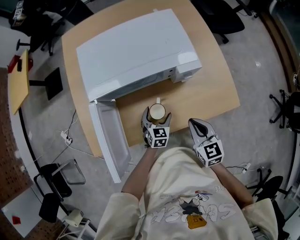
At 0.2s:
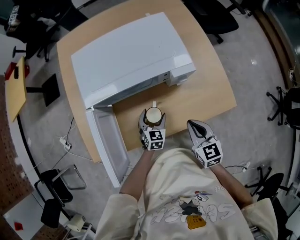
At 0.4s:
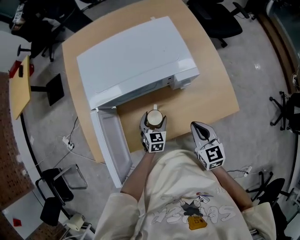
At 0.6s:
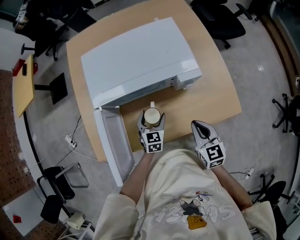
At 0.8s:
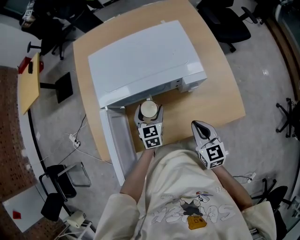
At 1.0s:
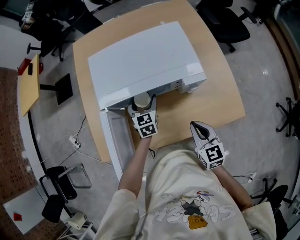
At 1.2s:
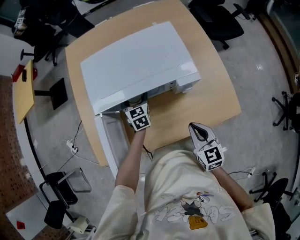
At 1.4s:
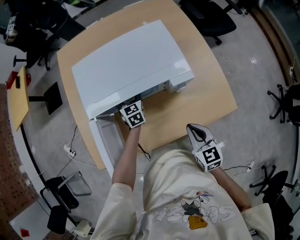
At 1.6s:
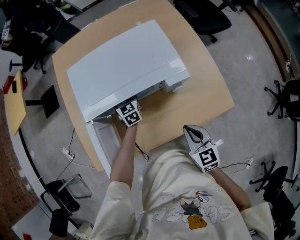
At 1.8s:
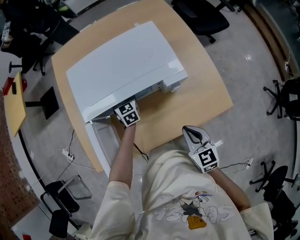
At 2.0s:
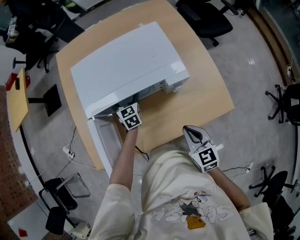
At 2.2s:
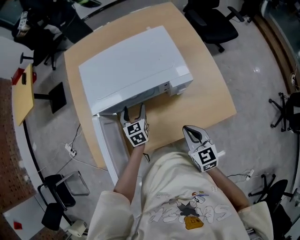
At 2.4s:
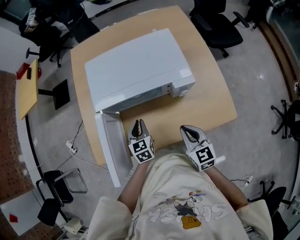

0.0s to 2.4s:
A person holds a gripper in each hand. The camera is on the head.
0.0s to 1.2s: The left gripper moves forward, upward and to the left, some 20 cm, and swivels about 20 degrees.
1.2s to 2.4s: The left gripper is displaced backward by about 15 cm, and closes.

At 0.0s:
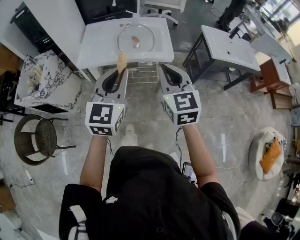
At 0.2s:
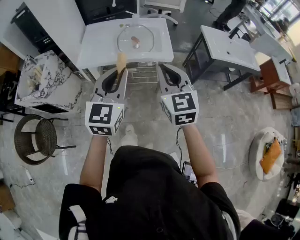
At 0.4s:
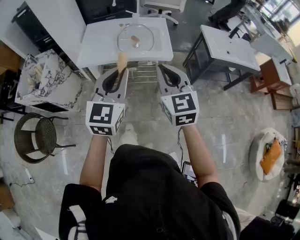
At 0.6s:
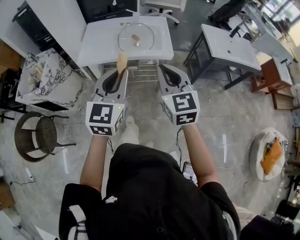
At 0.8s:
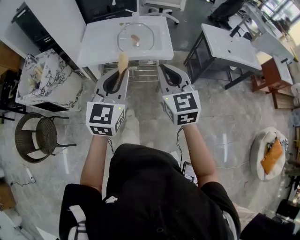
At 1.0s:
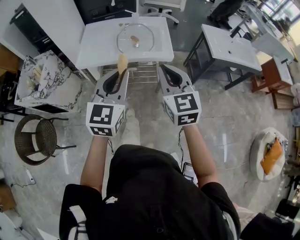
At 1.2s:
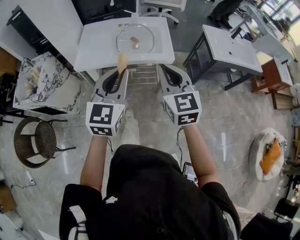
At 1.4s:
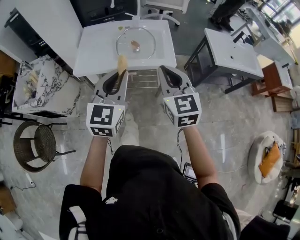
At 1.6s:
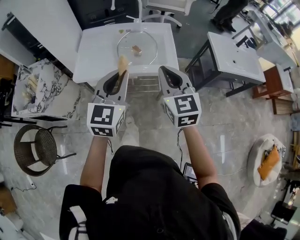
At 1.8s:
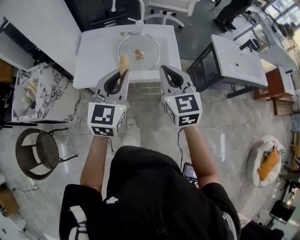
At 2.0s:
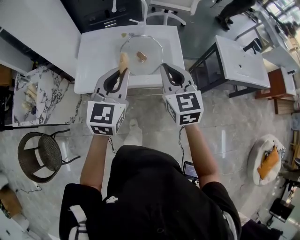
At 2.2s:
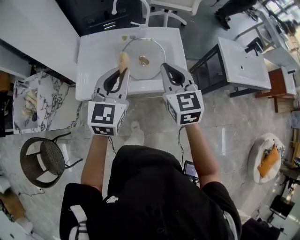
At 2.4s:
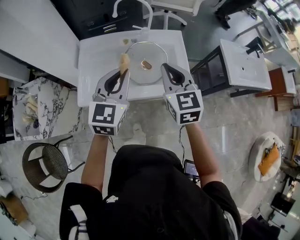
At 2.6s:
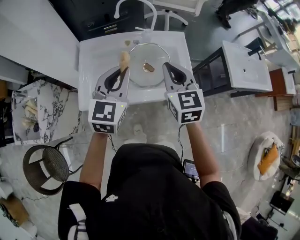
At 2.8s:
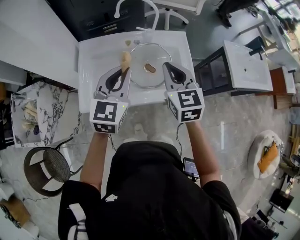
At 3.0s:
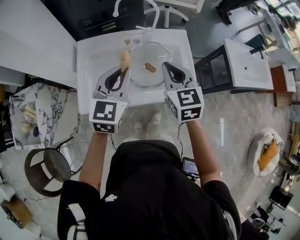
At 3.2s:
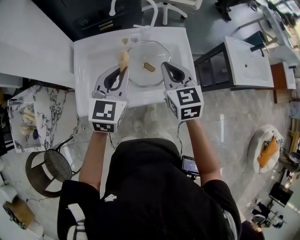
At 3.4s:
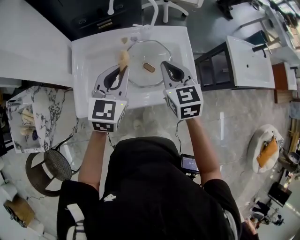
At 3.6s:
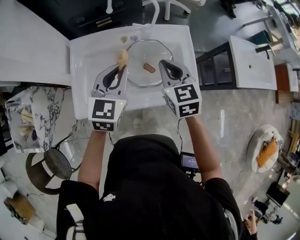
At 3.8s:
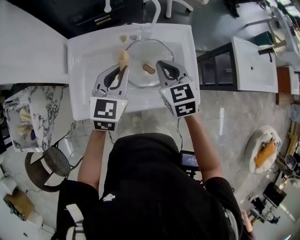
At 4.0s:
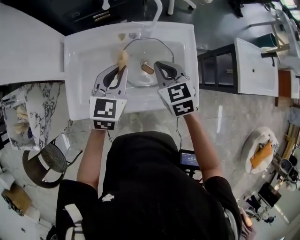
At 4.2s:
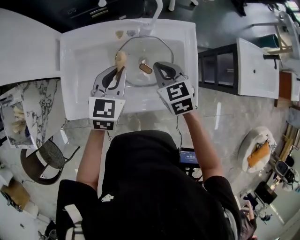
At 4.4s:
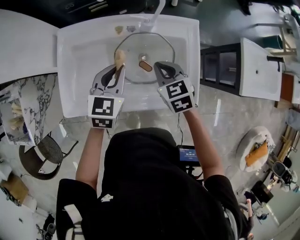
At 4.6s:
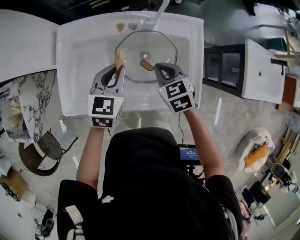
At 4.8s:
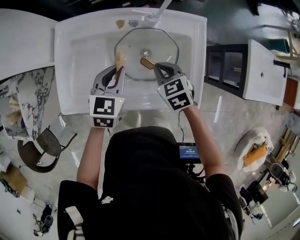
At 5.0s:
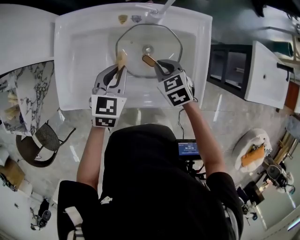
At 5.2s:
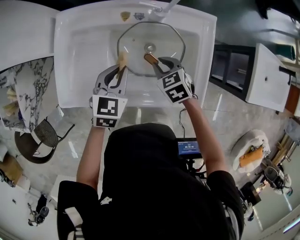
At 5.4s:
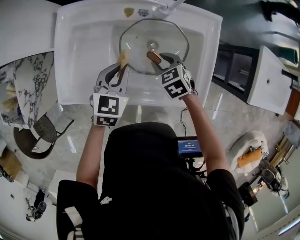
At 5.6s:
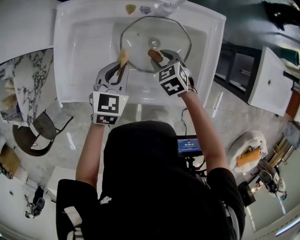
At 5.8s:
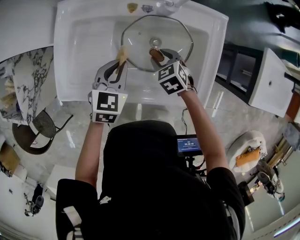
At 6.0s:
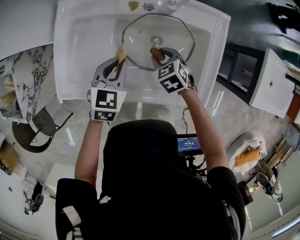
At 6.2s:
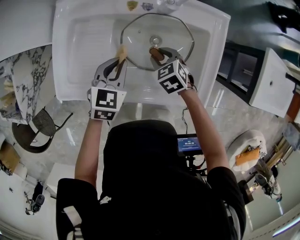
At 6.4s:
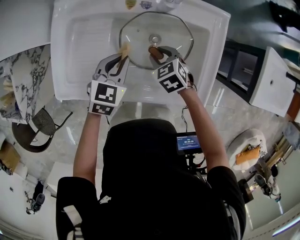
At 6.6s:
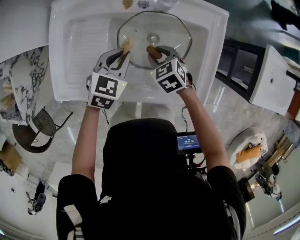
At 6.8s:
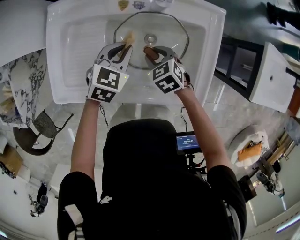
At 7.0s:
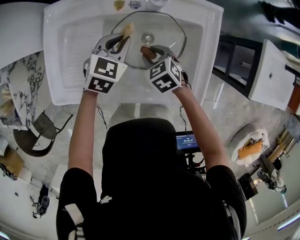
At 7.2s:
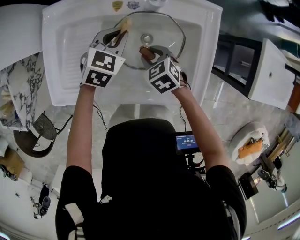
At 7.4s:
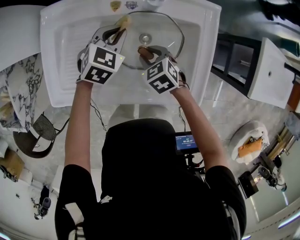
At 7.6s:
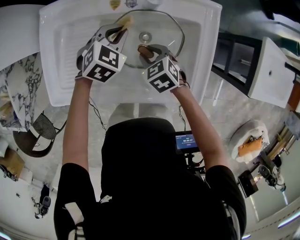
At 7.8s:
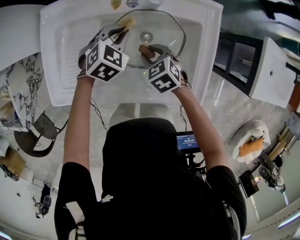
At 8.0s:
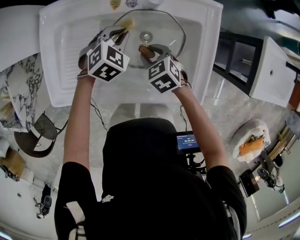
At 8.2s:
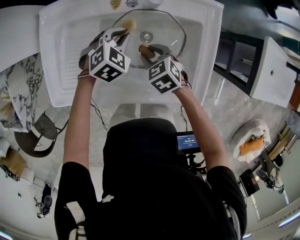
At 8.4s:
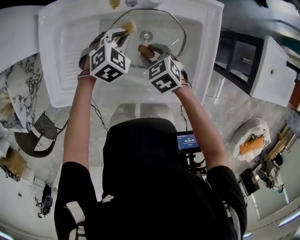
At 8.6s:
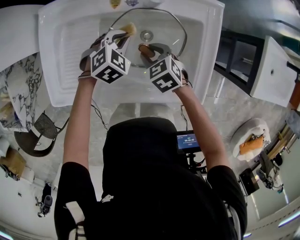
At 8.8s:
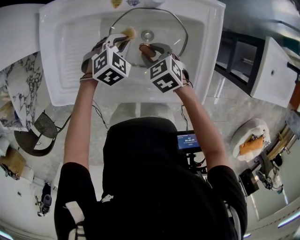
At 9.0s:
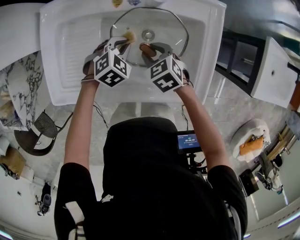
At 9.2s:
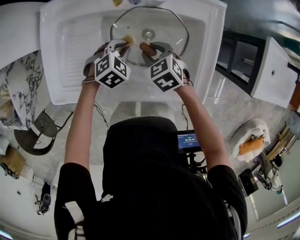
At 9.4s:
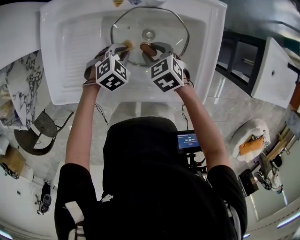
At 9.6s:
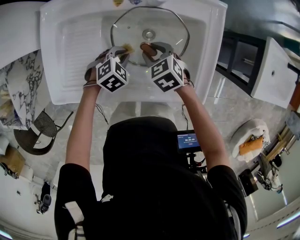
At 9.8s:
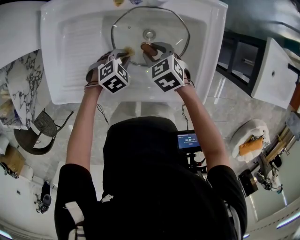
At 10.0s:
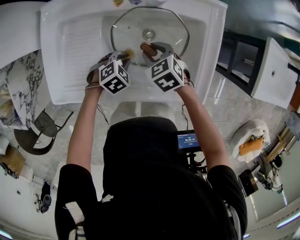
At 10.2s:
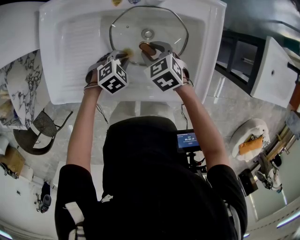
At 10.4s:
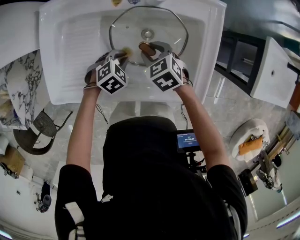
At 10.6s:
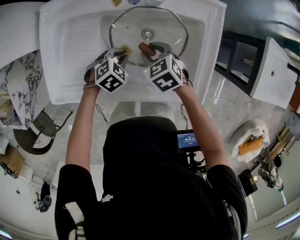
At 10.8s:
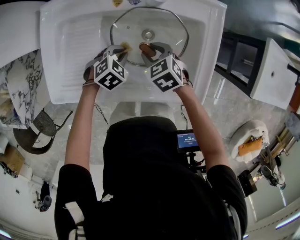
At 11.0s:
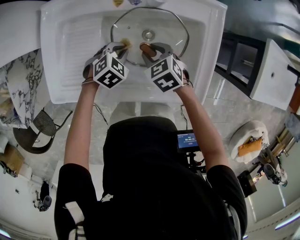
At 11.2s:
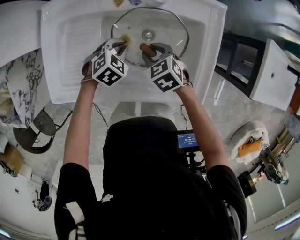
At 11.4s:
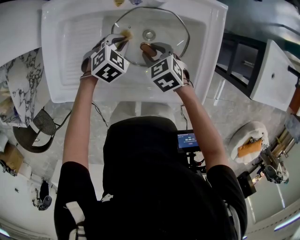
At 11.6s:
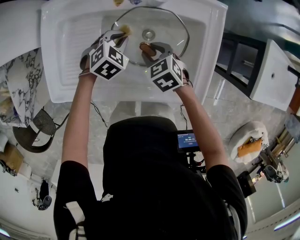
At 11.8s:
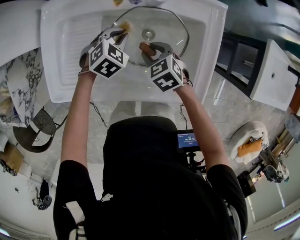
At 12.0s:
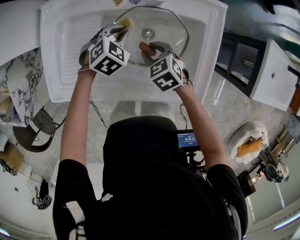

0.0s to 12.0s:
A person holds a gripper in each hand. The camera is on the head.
0.0s to 1.6s: Both grippers travel together forward, roughly 15 cm.
1.6s to 3.0s: The grippers both shift forward by about 25 cm.
3.0s to 4.4s: The grippers both shift downward and forward by about 20 cm. The right gripper changes its angle by some 30 degrees.
4.4s to 6.0s: Both grippers travel together downward, roughly 15 cm. The right gripper rotates about 20 degrees, and opens its fingers.
6.0s to 7.6s: The left gripper moves forward and to the right, some 10 cm, and rotates about 30 degrees.
7.6s to 9.0s: The left gripper moves downward and backward, roughly 10 cm.
9.0s to 10.4s: The left gripper shifts approximately 5 cm backward.
10.4s to 12.0s: The left gripper is displaced forward and upward by some 15 cm.

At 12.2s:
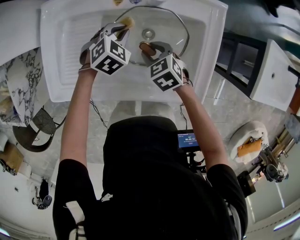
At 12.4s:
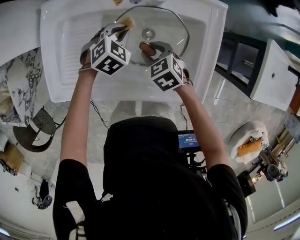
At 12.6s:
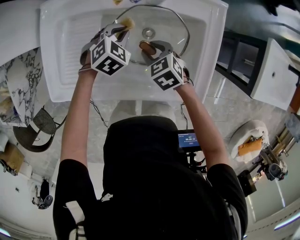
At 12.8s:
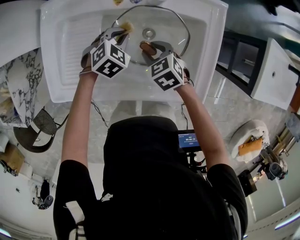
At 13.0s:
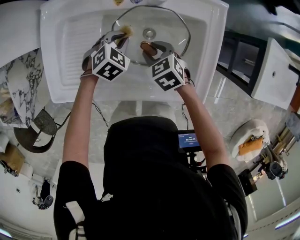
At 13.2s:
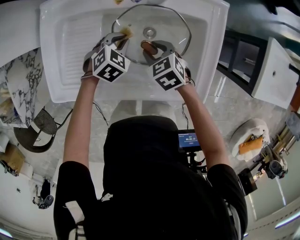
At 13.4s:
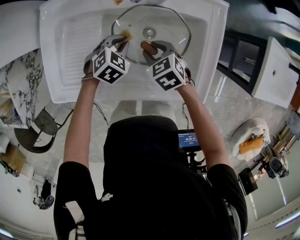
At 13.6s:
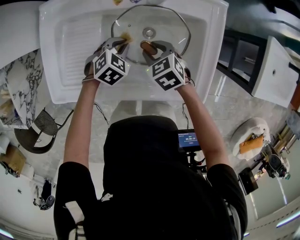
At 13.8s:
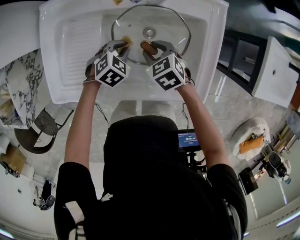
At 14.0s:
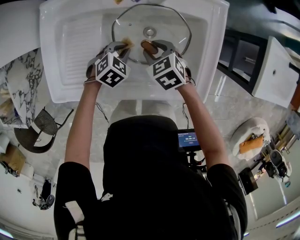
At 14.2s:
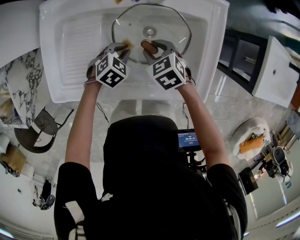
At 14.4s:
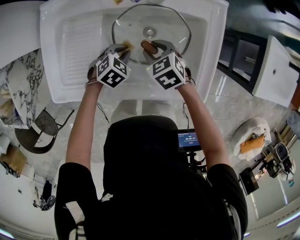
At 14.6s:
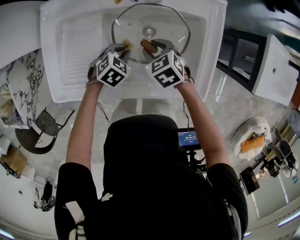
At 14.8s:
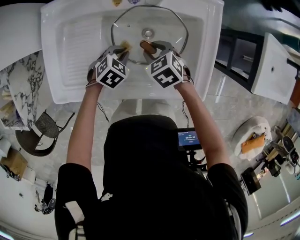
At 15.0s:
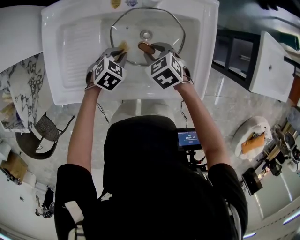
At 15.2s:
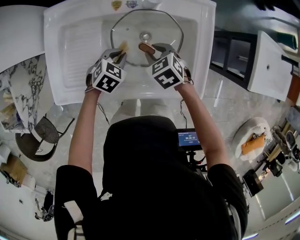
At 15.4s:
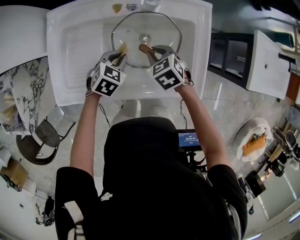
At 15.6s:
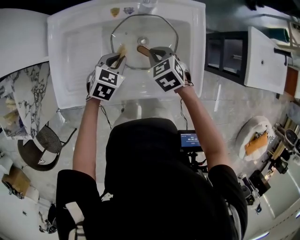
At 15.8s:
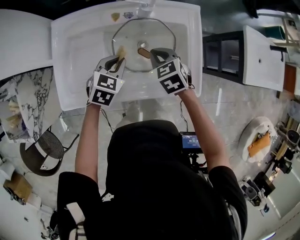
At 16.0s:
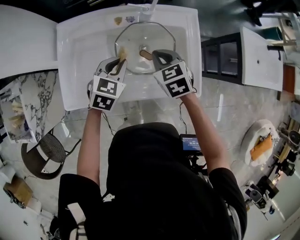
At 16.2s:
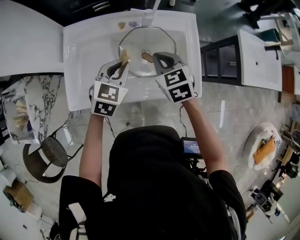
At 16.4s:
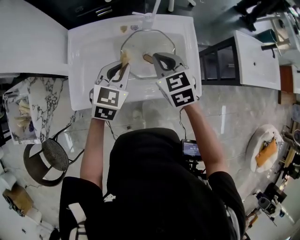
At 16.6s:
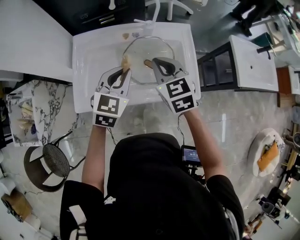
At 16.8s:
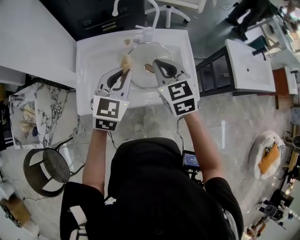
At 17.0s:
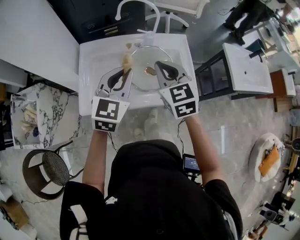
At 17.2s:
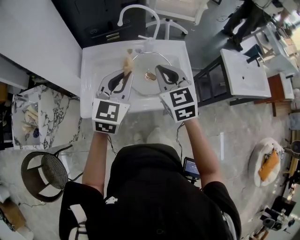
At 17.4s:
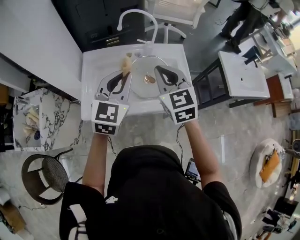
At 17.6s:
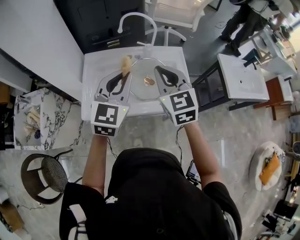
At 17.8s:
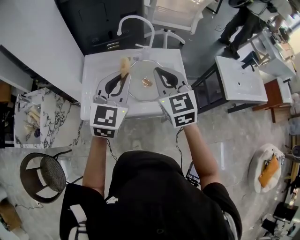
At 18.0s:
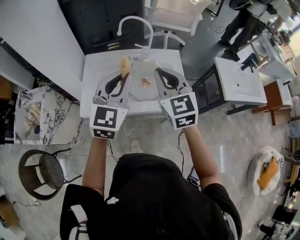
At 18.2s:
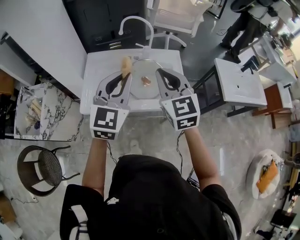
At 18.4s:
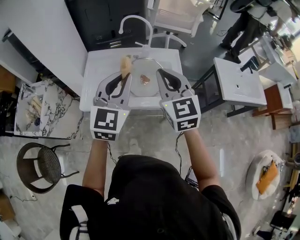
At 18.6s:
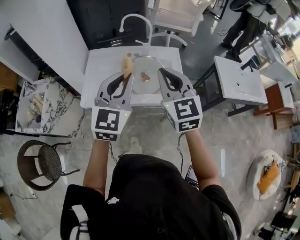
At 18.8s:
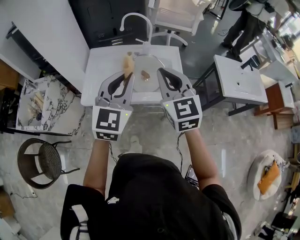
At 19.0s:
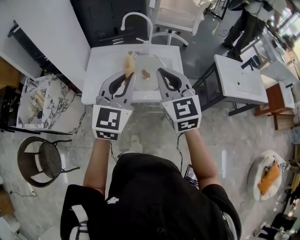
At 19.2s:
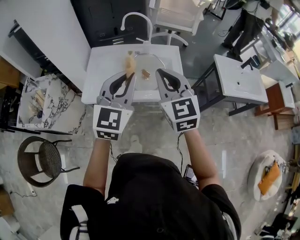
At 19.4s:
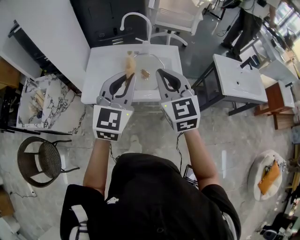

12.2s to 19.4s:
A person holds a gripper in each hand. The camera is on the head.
12.2s to 13.6s: The left gripper travels backward by some 5 cm.
13.6s to 15.0s: There are only small adjustments of the grippers.
15.0s to 16.6s: Both grippers travel together upward, approximately 30 cm. The left gripper tips its fingers upward by about 40 degrees; the right gripper tilts its fingers some 30 degrees upward, and closes up.
16.6s to 18.0s: Both grippers move upward and backward, about 20 cm. The left gripper swivels about 20 degrees.
18.0s to 19.4s: The grippers both shift backward by roughly 10 cm.

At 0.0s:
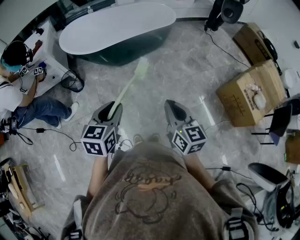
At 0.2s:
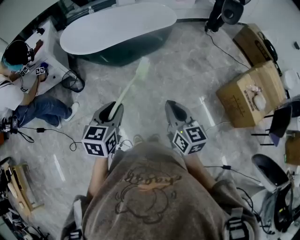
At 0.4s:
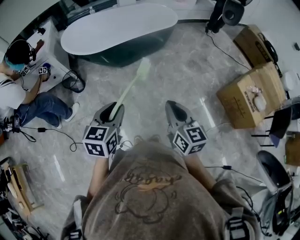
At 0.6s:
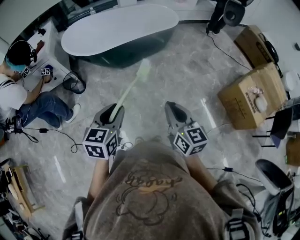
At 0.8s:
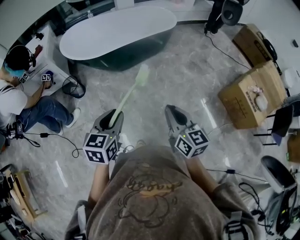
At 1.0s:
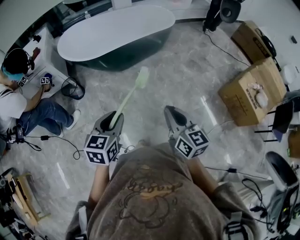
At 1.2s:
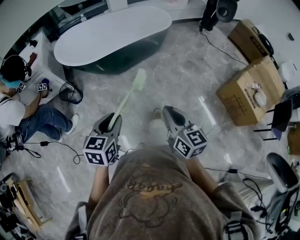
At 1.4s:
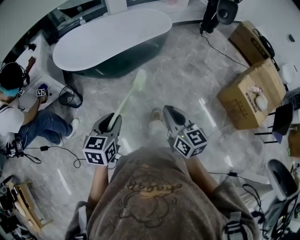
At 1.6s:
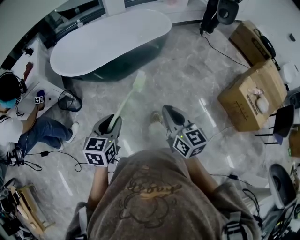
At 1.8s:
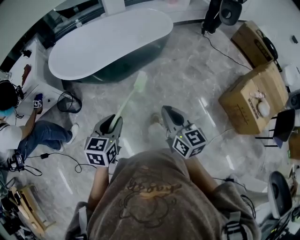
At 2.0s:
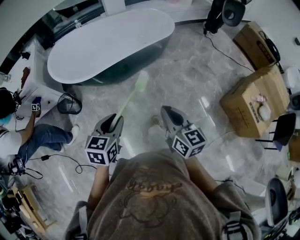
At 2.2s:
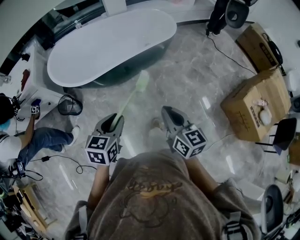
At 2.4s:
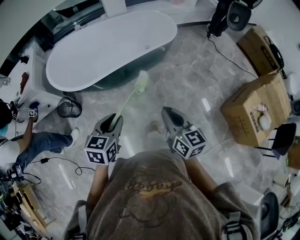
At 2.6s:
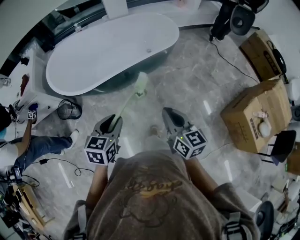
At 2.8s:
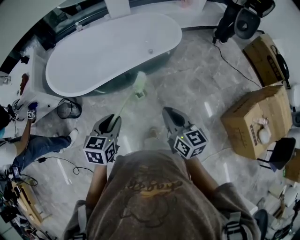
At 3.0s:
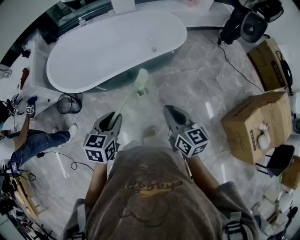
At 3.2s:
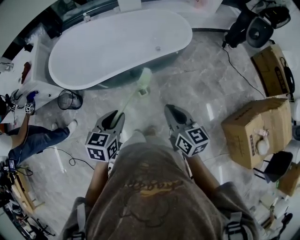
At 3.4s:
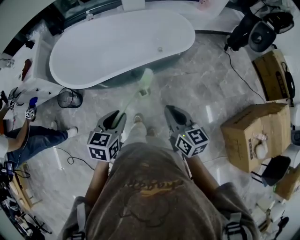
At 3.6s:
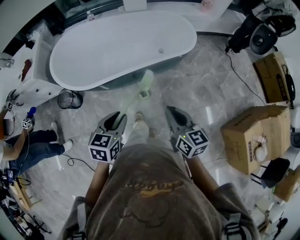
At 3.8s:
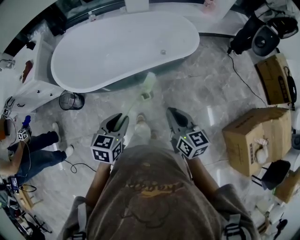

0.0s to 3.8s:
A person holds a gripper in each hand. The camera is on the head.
0.0s to 1.2s: The right gripper ends up roughly 5 cm from where it was, while the left gripper moves roughly 5 cm.
1.2s to 2.6s: Both grippers move forward, roughly 30 cm.
2.6s to 3.8s: The two grippers go about 10 cm forward.
